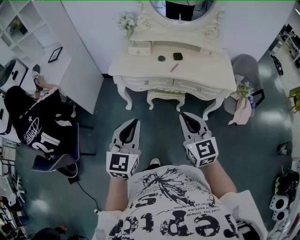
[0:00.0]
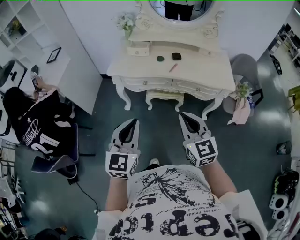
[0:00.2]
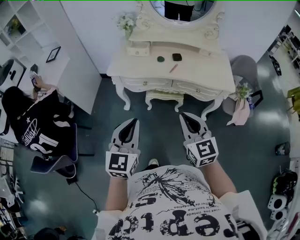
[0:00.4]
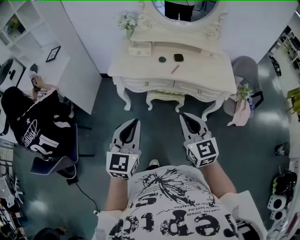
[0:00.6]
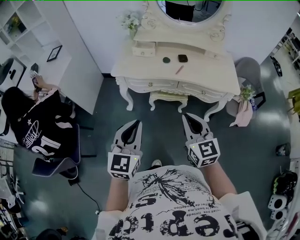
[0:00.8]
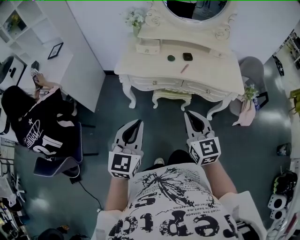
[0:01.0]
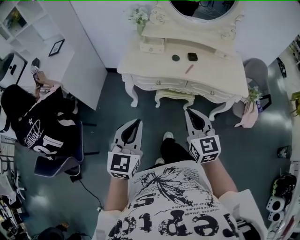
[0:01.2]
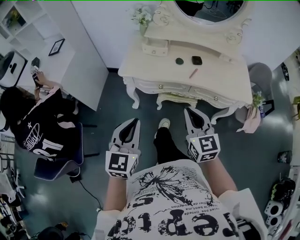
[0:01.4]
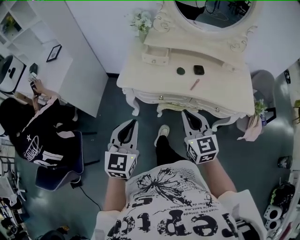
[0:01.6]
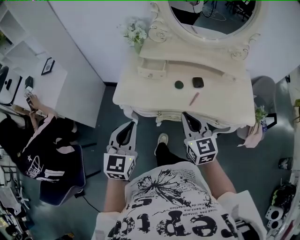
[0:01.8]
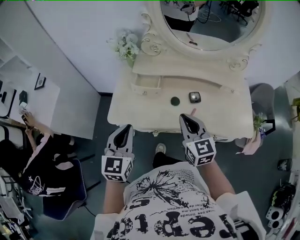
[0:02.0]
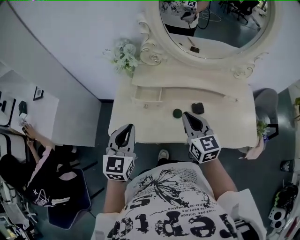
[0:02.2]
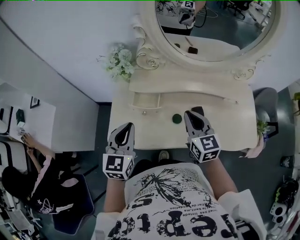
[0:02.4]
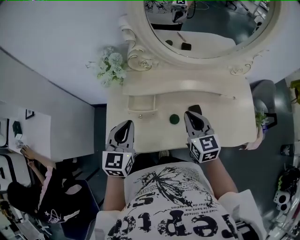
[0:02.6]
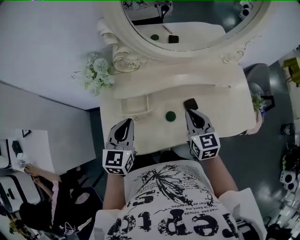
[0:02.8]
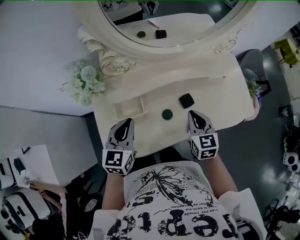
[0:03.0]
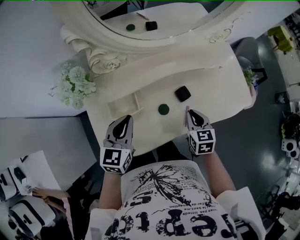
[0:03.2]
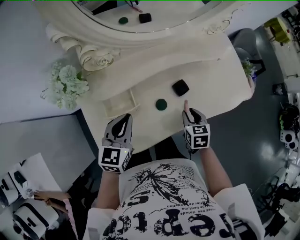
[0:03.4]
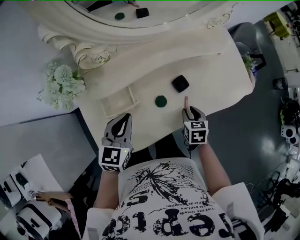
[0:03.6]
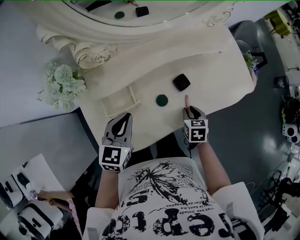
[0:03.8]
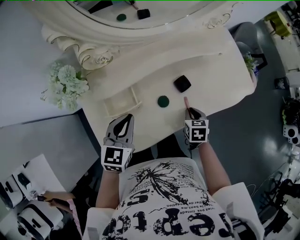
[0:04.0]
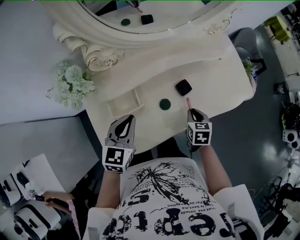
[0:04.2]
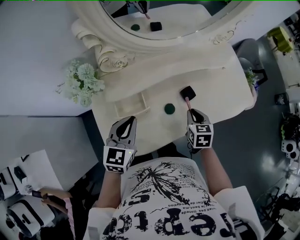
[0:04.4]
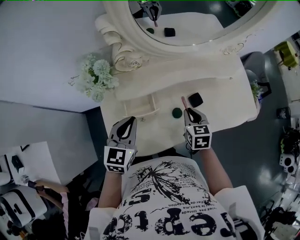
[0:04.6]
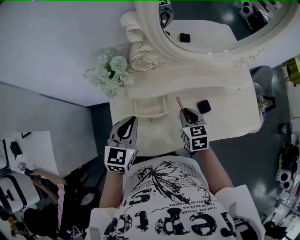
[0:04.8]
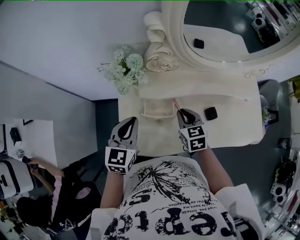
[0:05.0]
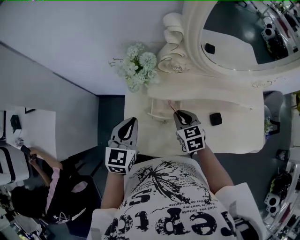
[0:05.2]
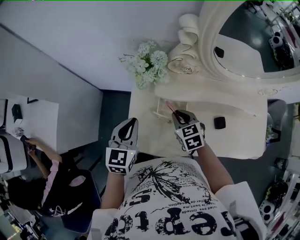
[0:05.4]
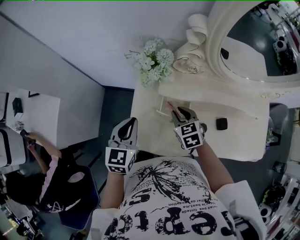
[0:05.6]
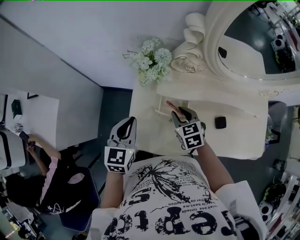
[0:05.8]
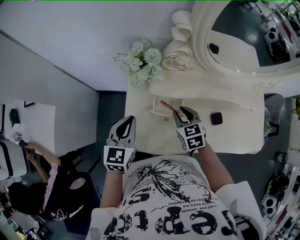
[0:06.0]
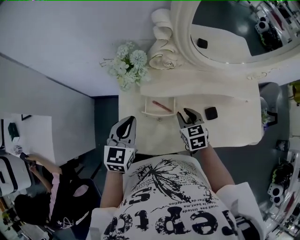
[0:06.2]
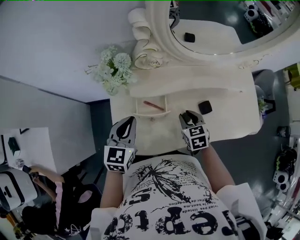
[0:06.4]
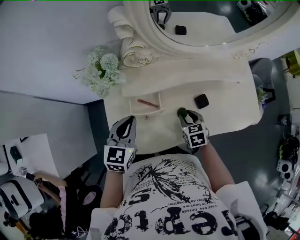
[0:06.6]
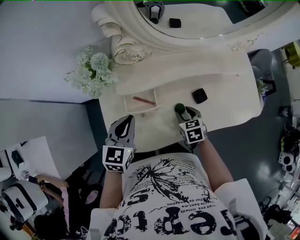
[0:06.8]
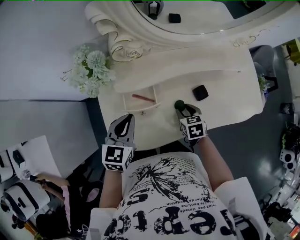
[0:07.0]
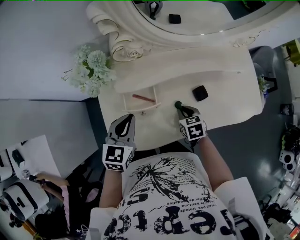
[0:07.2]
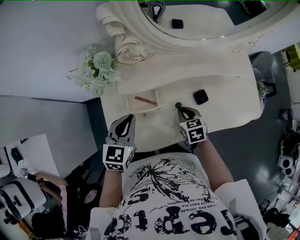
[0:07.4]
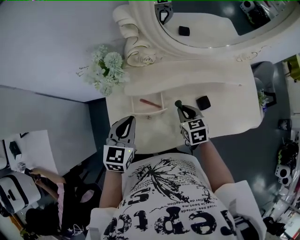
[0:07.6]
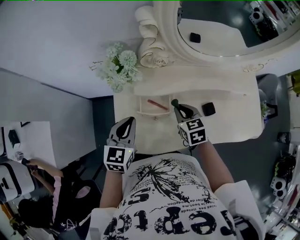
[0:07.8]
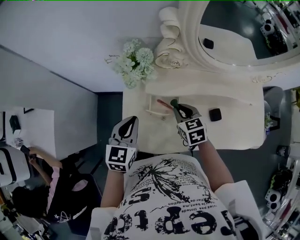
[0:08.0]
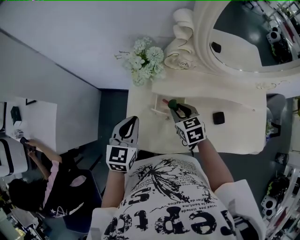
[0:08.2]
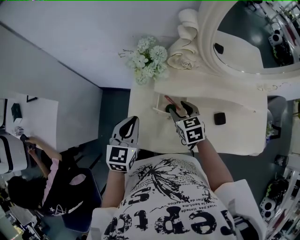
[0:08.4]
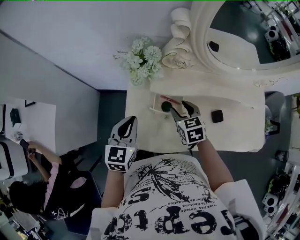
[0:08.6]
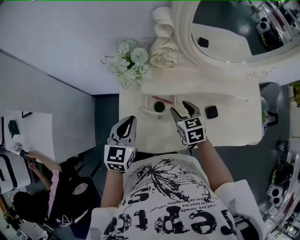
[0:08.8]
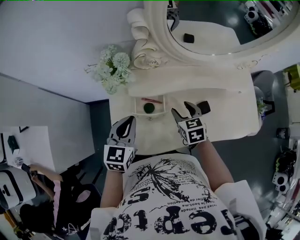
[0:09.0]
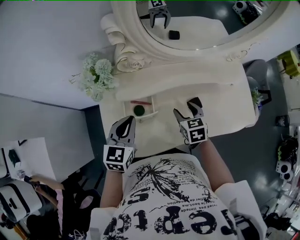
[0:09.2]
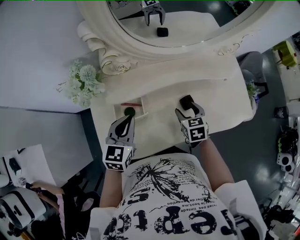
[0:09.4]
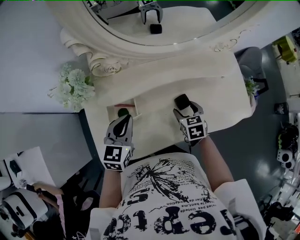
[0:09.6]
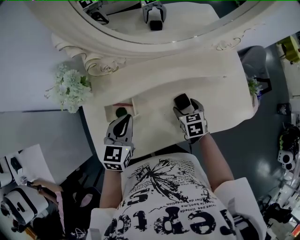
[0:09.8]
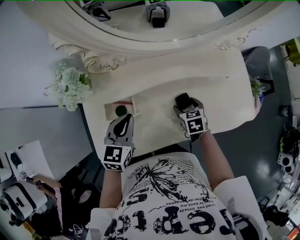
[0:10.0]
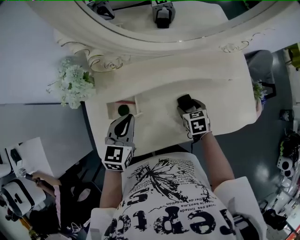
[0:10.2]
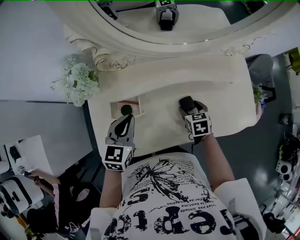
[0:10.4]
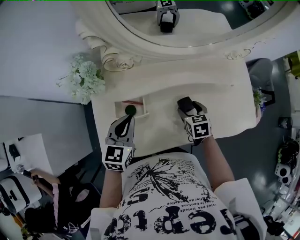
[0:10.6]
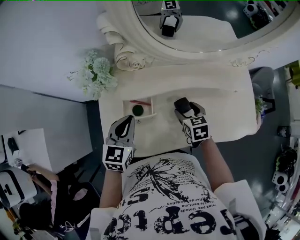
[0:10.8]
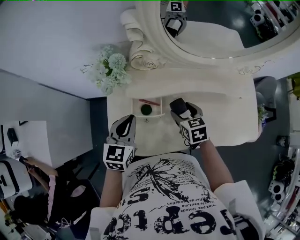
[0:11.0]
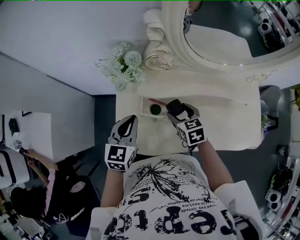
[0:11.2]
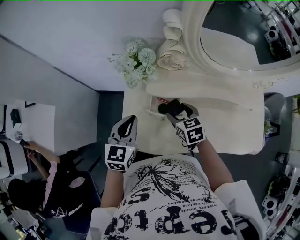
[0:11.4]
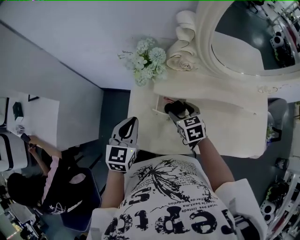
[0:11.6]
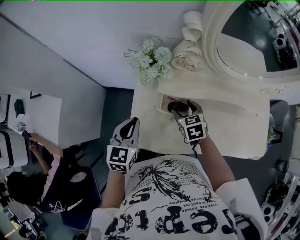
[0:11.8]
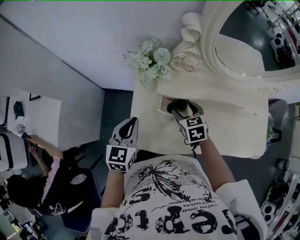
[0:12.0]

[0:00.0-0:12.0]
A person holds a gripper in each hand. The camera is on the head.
0.0 to 1.6 s: The right gripper heads forward, covering approximately 20 cm. The left gripper moves forward and to the left, approximately 20 cm.
1.6 to 3.0 s: The left gripper ends up some 40 cm from where it was, and changes its angle by approximately 30 degrees. The right gripper ends up some 35 cm from where it was, and swivels roughly 30 degrees.
3.0 to 4.4 s: The right gripper goes roughly 5 cm downward, and turns by about 20 degrees.
4.4 to 6.0 s: The left gripper changes place by some 15 cm, and swivels roughly 30 degrees, while the right gripper moves about 25 cm, and turns by some 40 degrees.
6.0 to 7.6 s: The two grippers go roughly 10 cm to the right.
7.6 to 9.0 s: The left gripper moves approximately 10 cm to the left and comes back. The right gripper goes to the left and returns, approximately 15 cm each way, and opens its fingers.
9.0 to 10.4 s: The left gripper heads to the right, covering some 10 cm, while the right gripper is displaced to the right and downward by roughly 20 cm.
10.4 to 12.0 s: Both grippers travel together to the left, some 25 cm. The right gripper turns by about 20 degrees.

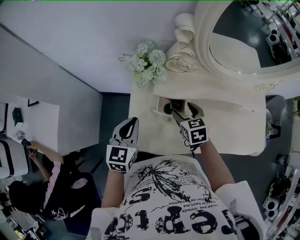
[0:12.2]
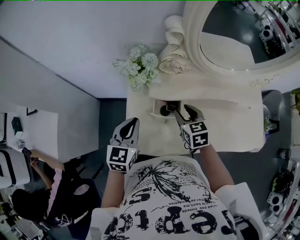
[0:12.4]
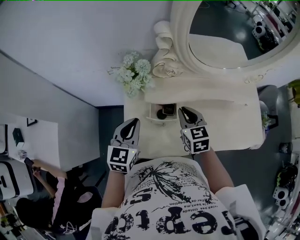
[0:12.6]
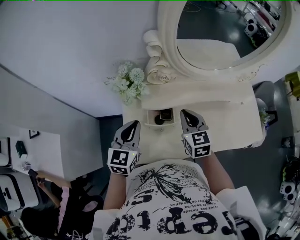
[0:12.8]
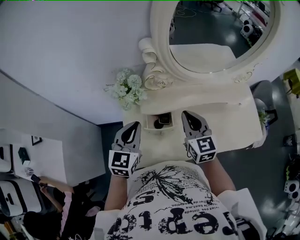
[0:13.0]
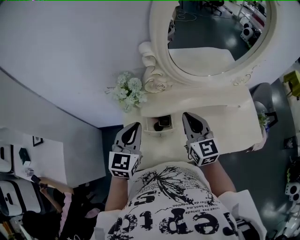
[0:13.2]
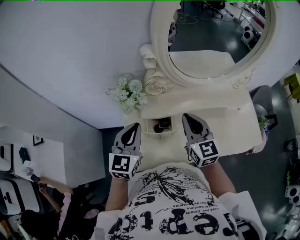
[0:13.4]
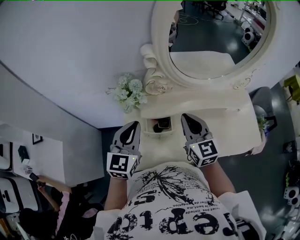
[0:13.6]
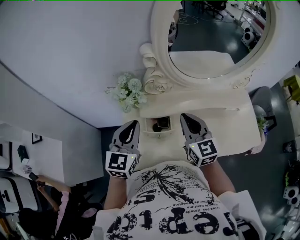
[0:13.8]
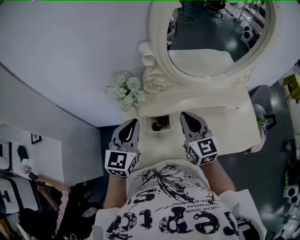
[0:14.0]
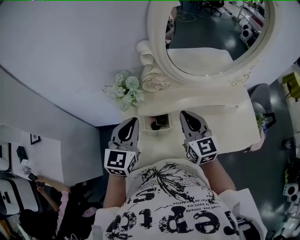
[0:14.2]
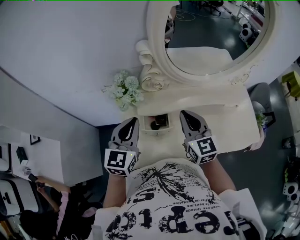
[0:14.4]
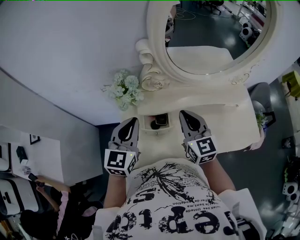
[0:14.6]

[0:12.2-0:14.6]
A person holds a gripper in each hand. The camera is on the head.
12.2 to 13.4 s: The right gripper goes about 20 cm upward, angles its fingers upward, by approximately 40 degrees, and closes its fingers. The left gripper heads upward and to the right, covering roughly 10 cm.
13.4 to 14.6 s: Both grippers stay put.

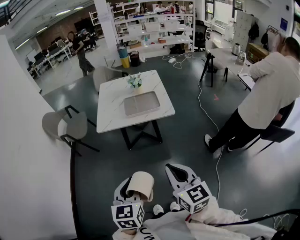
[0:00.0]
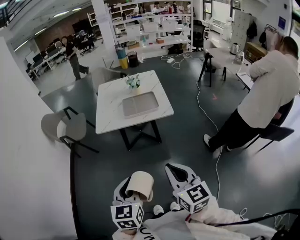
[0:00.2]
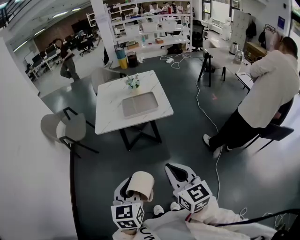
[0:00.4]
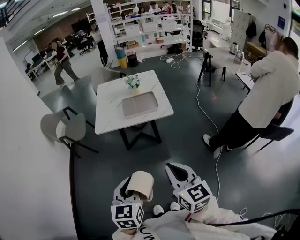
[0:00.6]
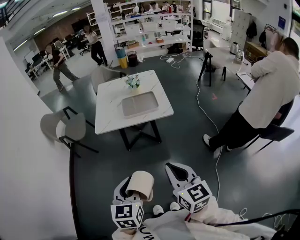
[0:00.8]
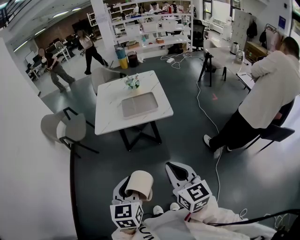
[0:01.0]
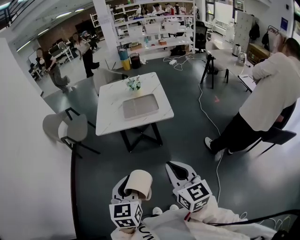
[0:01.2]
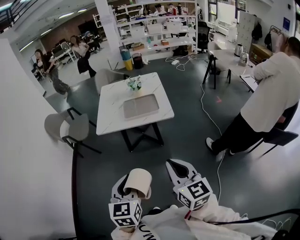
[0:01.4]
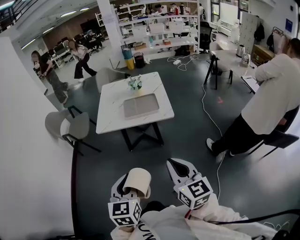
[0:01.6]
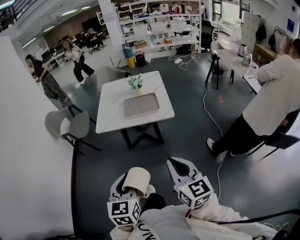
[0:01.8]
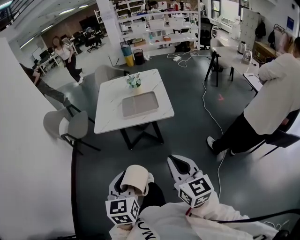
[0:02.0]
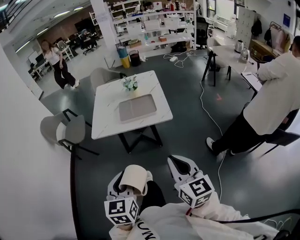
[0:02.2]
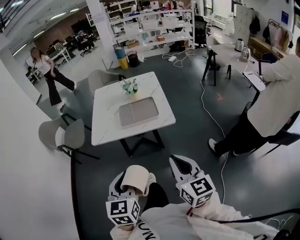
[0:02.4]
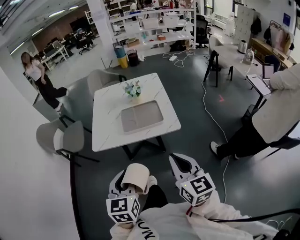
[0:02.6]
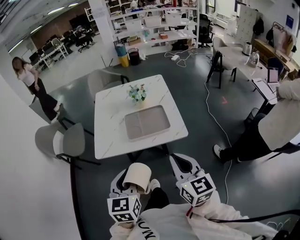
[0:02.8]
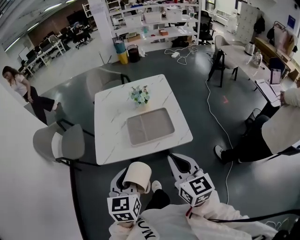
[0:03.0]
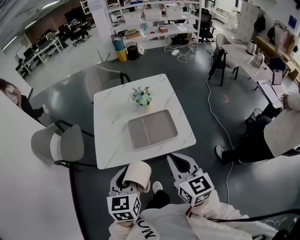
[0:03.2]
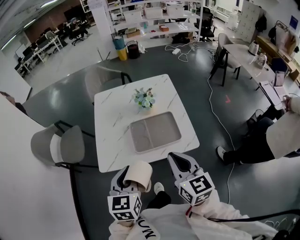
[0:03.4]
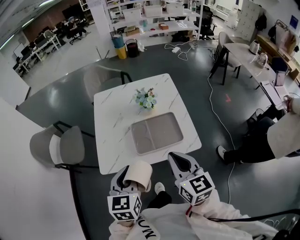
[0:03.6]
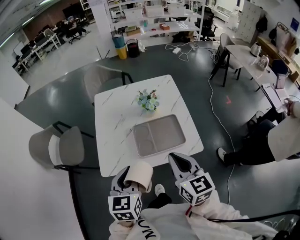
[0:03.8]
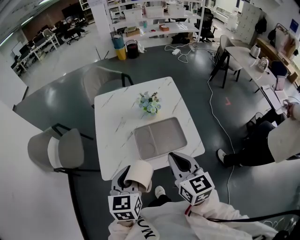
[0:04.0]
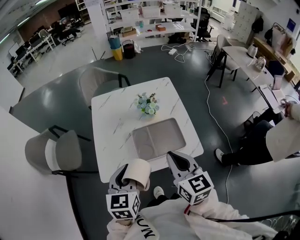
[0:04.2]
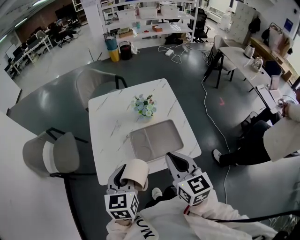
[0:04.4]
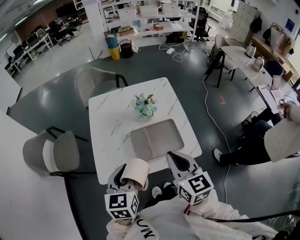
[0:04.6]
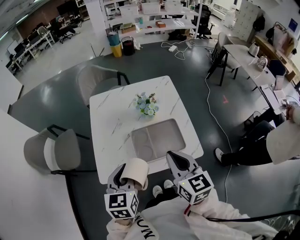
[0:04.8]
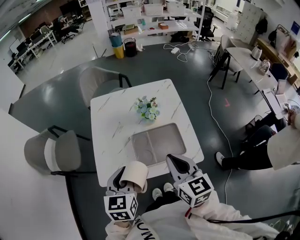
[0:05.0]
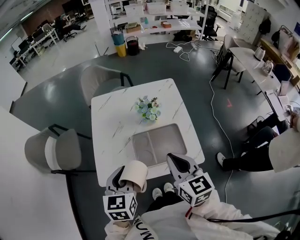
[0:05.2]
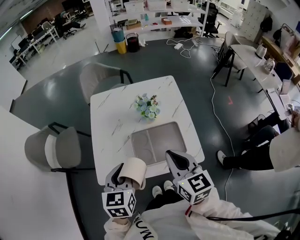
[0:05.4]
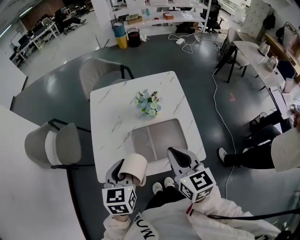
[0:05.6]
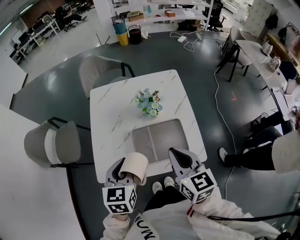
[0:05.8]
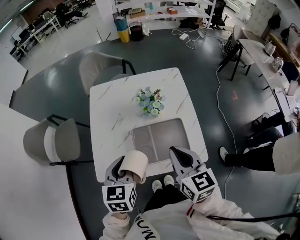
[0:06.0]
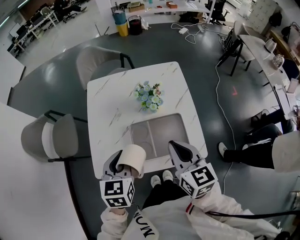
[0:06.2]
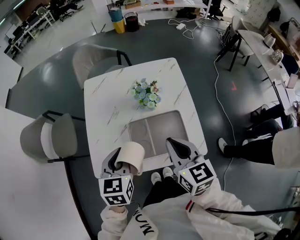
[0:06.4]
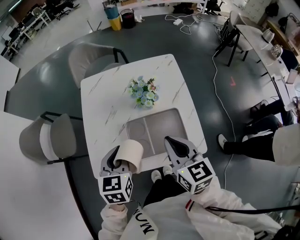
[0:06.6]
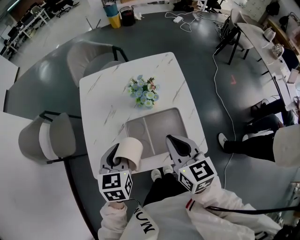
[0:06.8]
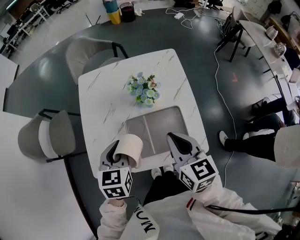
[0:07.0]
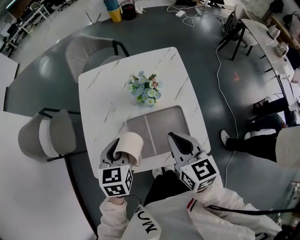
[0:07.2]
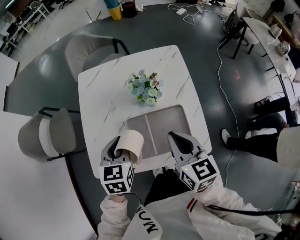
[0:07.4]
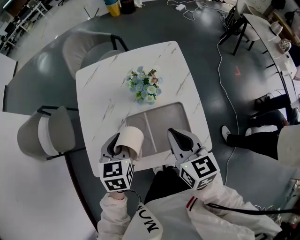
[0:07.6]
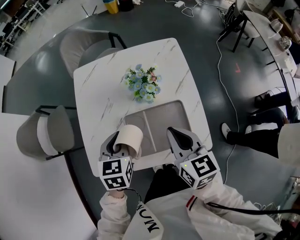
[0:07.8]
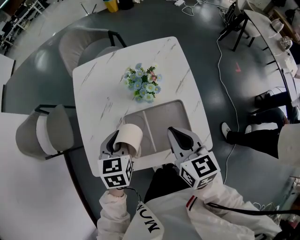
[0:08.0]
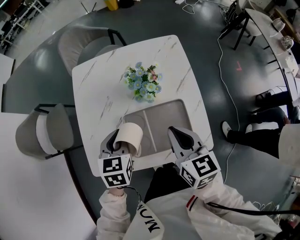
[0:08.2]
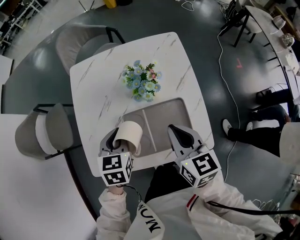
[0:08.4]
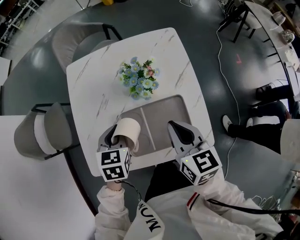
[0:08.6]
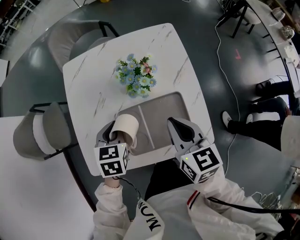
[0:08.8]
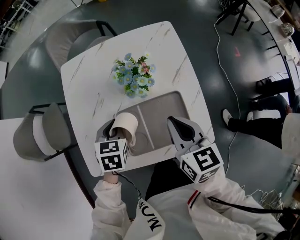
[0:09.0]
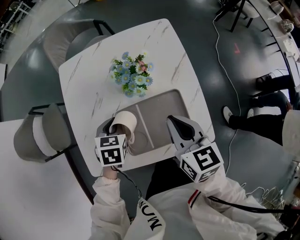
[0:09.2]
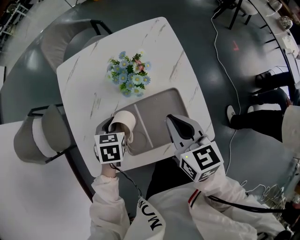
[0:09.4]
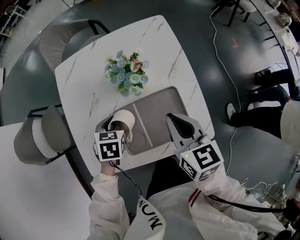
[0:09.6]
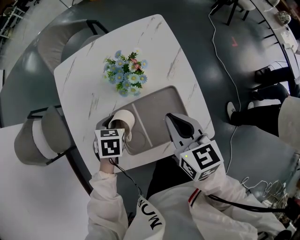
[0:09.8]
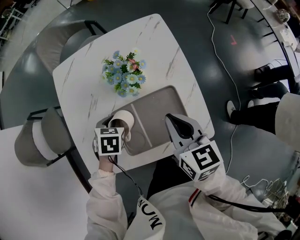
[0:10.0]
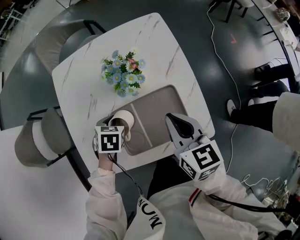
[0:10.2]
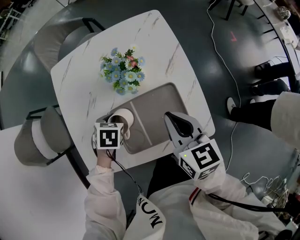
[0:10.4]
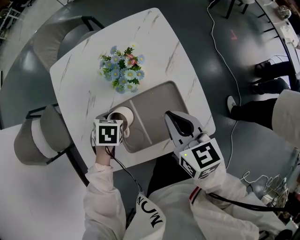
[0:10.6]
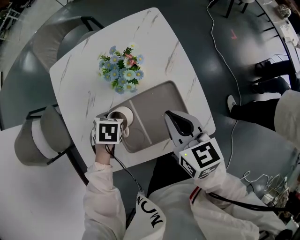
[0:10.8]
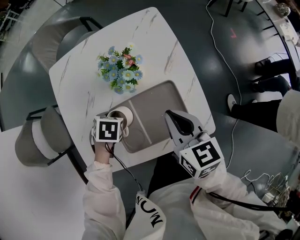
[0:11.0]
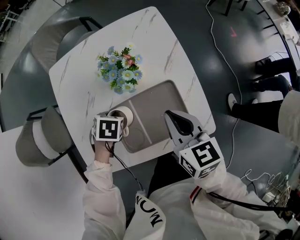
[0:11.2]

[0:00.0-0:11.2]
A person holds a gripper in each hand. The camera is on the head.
0.0 to 1.6 s: The right gripper moves to the right, roughly 5 cm.
1.6 to 3.2 s: The two grippers go roughly 40 cm forward.
3.2 to 4.8 s: Both grippers move forward, approximately 15 cm.
4.8 to 6.4 s: Both grippers travel together forward, roughly 10 cm.
6.4 to 8.0 s: The left gripper travels downward and forward by about 10 cm. Meanwhile the right gripper travels downward by some 5 cm.
8.0 to 9.6 s: The left gripper moves downward, about 10 cm, and swivels about 20 degrees, while the right gripper shifts by approximately 5 cm.
9.6 to 11.2 s: The grippers stay close to where they were, moving slightly.
